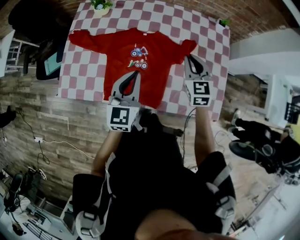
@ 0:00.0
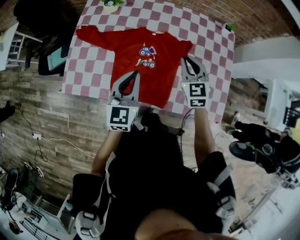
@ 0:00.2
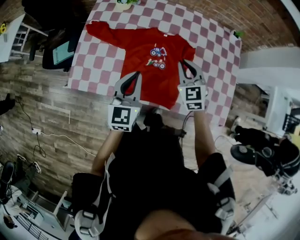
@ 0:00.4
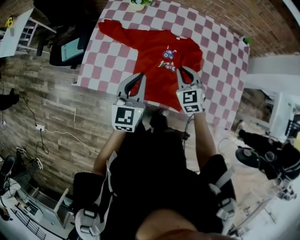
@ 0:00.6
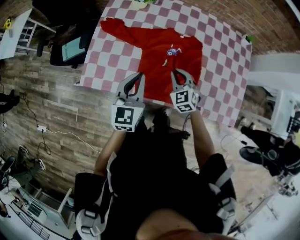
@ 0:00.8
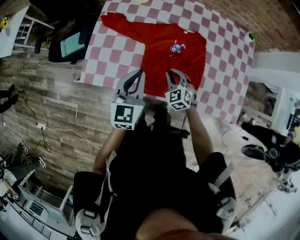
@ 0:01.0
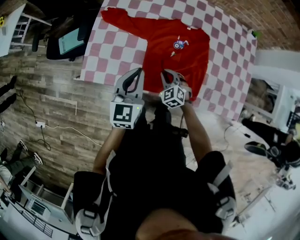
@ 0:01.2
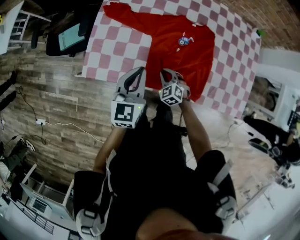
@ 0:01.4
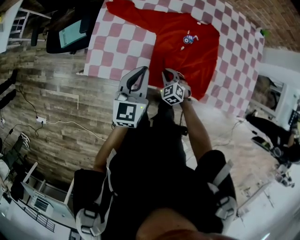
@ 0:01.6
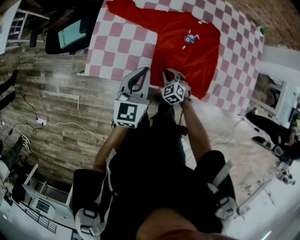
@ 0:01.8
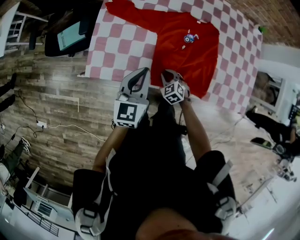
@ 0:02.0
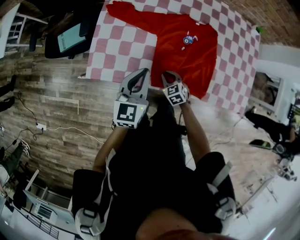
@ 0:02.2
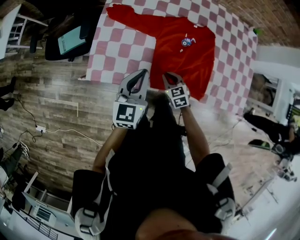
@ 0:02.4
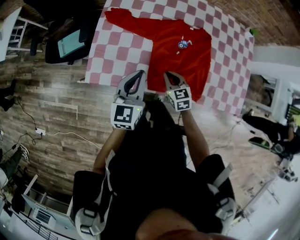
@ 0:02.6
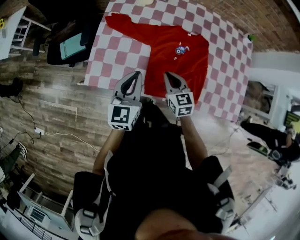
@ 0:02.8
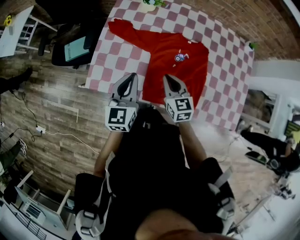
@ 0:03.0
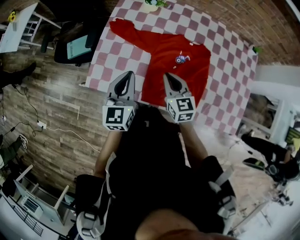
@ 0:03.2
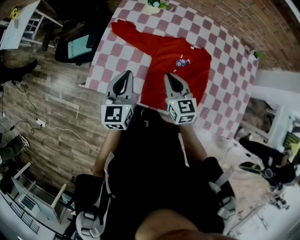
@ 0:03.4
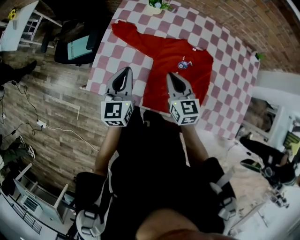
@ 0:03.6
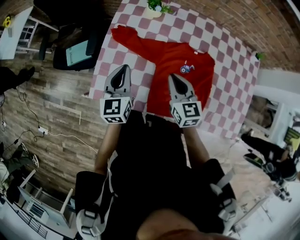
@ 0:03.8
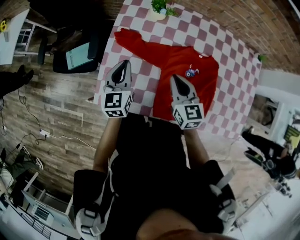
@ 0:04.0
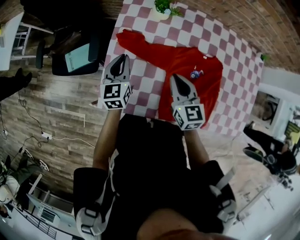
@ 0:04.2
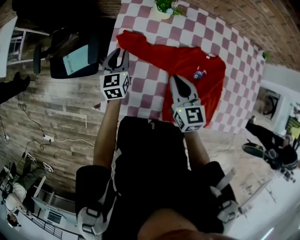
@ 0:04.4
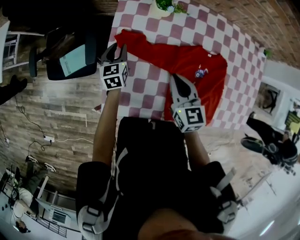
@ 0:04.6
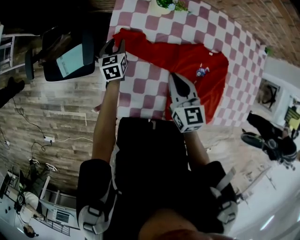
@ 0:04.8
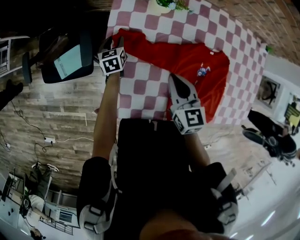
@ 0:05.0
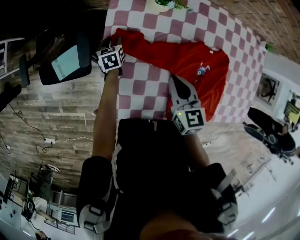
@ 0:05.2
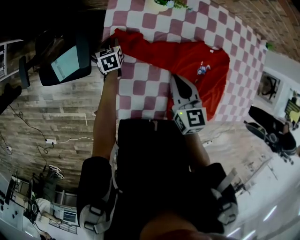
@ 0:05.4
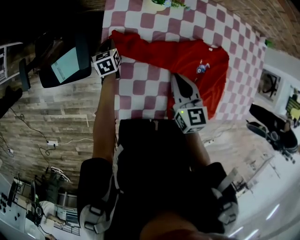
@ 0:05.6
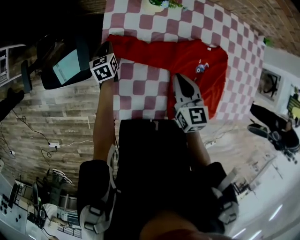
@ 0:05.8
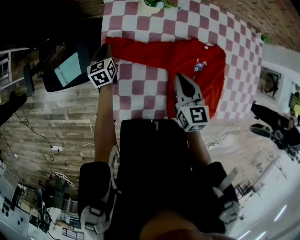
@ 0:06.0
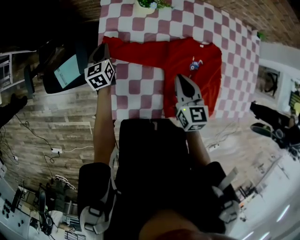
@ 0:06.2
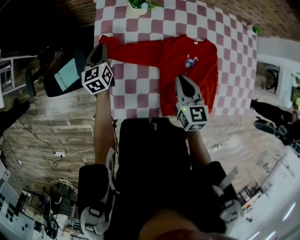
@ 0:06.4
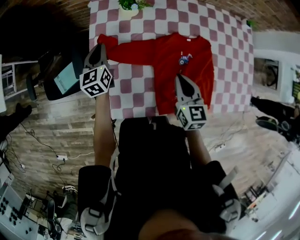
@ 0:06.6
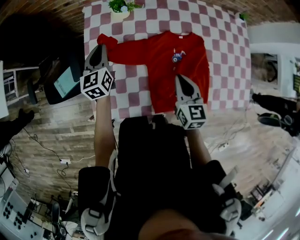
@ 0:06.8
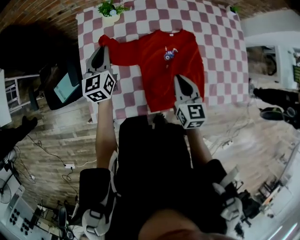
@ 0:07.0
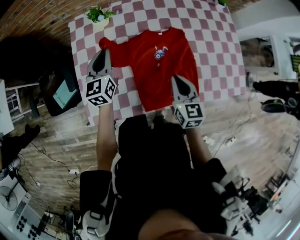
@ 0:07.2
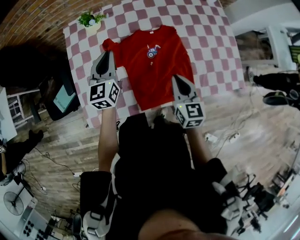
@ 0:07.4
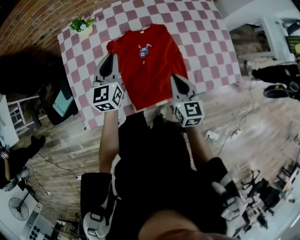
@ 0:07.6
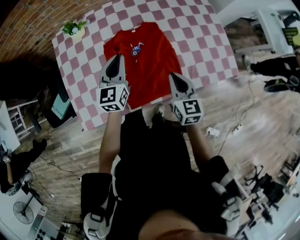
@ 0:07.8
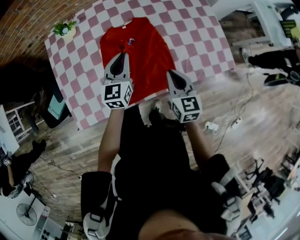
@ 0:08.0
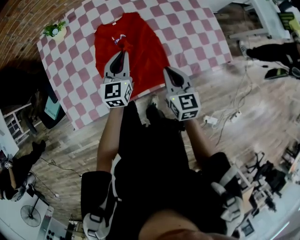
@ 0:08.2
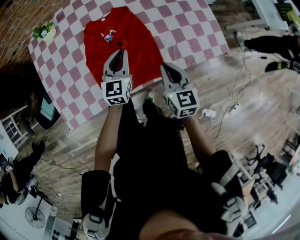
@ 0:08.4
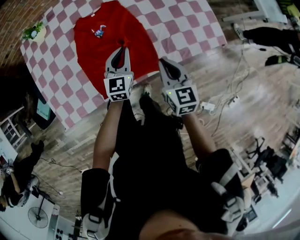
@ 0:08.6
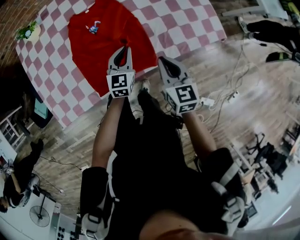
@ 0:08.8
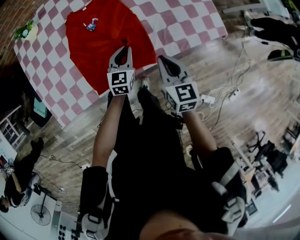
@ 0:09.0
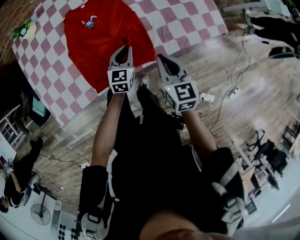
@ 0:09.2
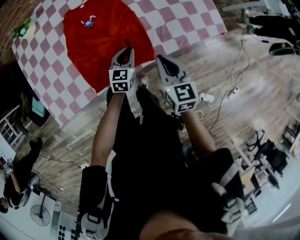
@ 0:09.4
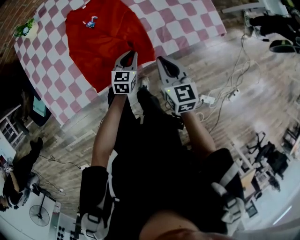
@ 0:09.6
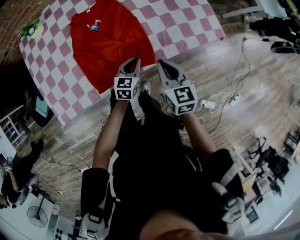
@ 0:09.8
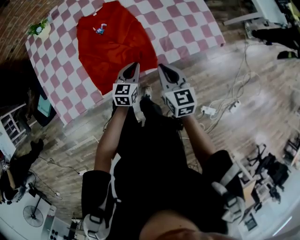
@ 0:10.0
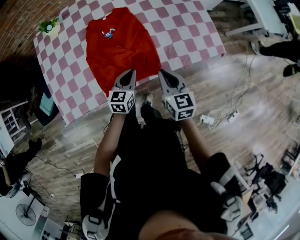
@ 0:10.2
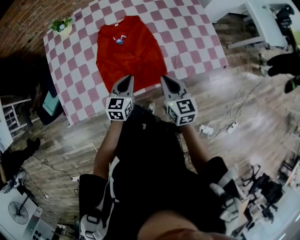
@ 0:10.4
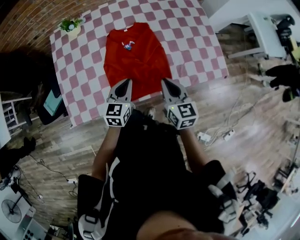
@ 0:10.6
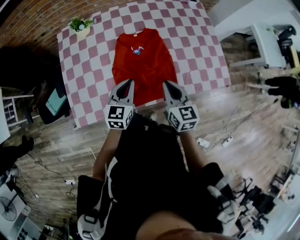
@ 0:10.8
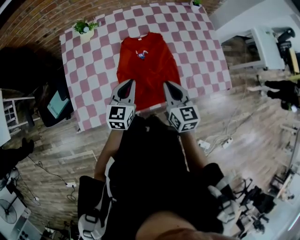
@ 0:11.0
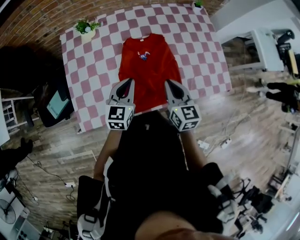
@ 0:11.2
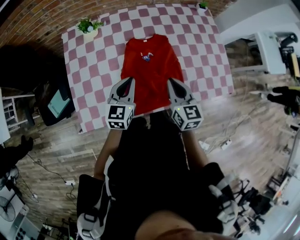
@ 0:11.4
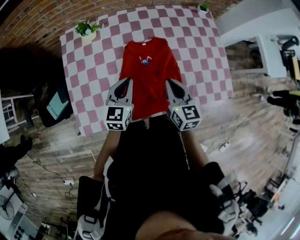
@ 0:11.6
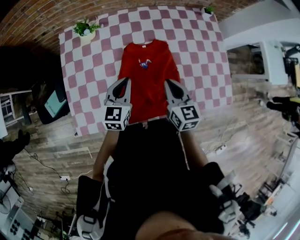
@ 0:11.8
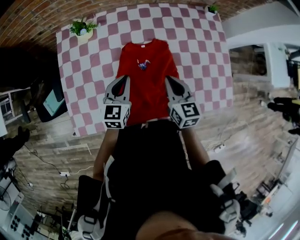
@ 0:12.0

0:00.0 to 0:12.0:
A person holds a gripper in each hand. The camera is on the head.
0:00.0 to 0:01.6: The left gripper shifts about 25 cm to the left. The right gripper is displaced to the left and downward by about 50 cm, and changes its angle by roughly 40 degrees.
0:01.6 to 0:03.0: The right gripper is displaced upward by some 20 cm, and rotates approximately 40 degrees; the left gripper shifts by roughly 5 cm.
0:03.0 to 0:04.4: The left gripper moves forward, to the left and downward, roughly 35 cm; the right gripper shifts some 20 cm forward and to the left.
0:04.4 to 0:06.0: The left gripper heads downward and forward, covering approximately 15 cm.
0:06.0 to 0:07.6: The left gripper is displaced to the right and upward by about 40 cm, and changes its angle by roughly 40 degrees. Meanwhile the right gripper heads to the right and backward, covering roughly 35 cm, and swivels some 20 degrees.
0:07.6 to 0:09.0: The right gripper shifts about 20 cm to the right, downward and backward, while the left gripper travels to the right and downward by roughly 35 cm, and turns by about 20 degrees.
0:09.0 to 0:10.4: The right gripper moves upward and to the left, roughly 10 cm. Meanwhile the left gripper goes approximately 15 cm upward, backward and to the left.
0:10.4 to 0:12.0: The left gripper goes roughly 25 cm forward, to the left and upward. The right gripper goes some 25 cm forward and to the left.

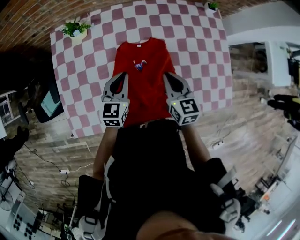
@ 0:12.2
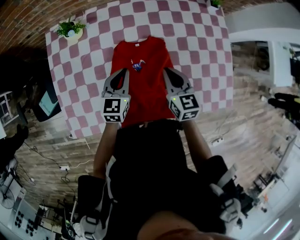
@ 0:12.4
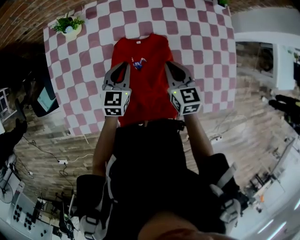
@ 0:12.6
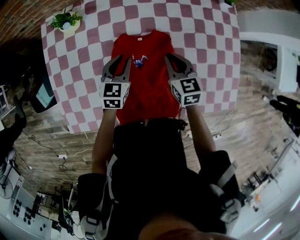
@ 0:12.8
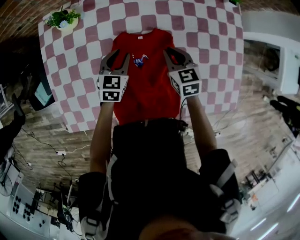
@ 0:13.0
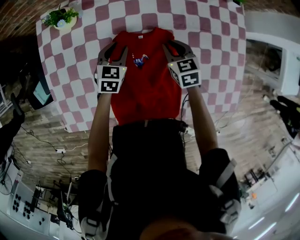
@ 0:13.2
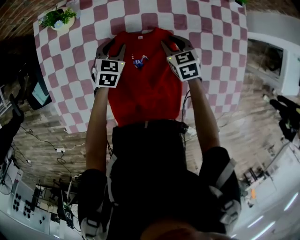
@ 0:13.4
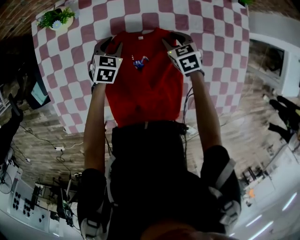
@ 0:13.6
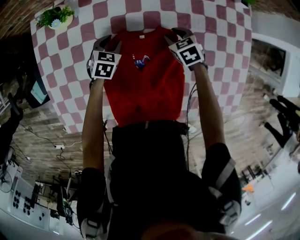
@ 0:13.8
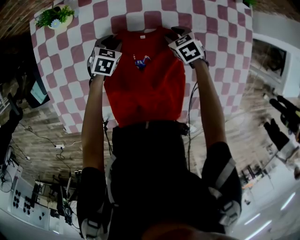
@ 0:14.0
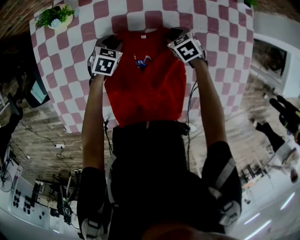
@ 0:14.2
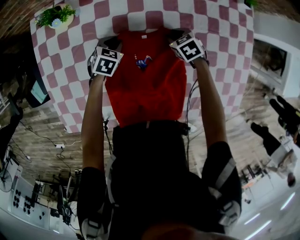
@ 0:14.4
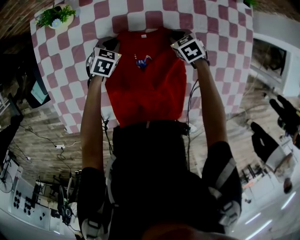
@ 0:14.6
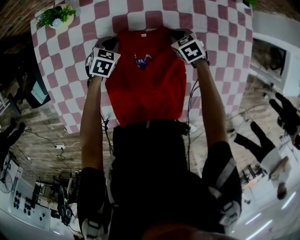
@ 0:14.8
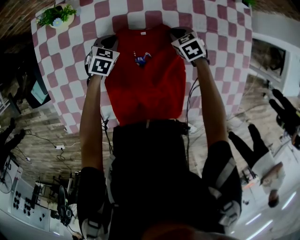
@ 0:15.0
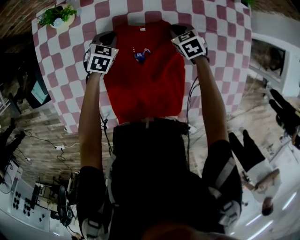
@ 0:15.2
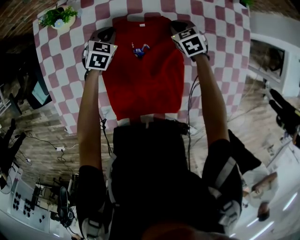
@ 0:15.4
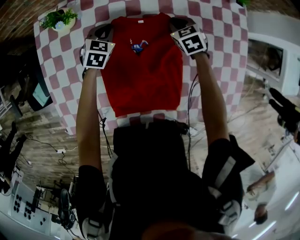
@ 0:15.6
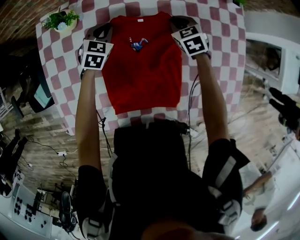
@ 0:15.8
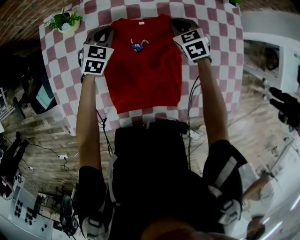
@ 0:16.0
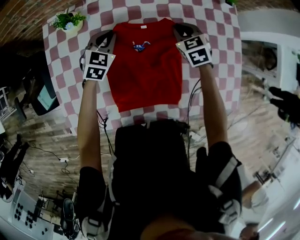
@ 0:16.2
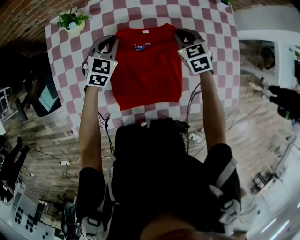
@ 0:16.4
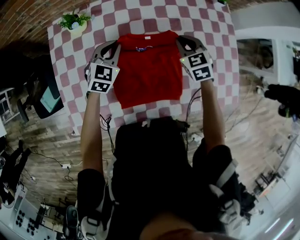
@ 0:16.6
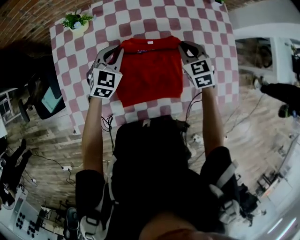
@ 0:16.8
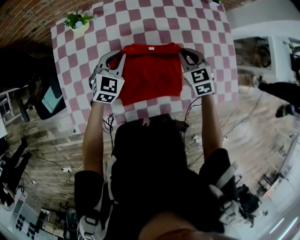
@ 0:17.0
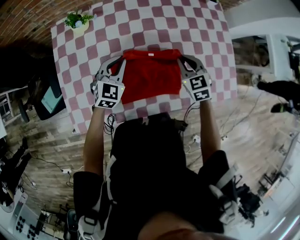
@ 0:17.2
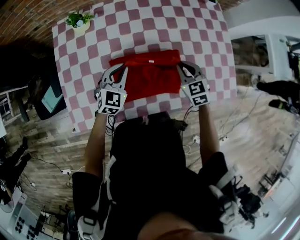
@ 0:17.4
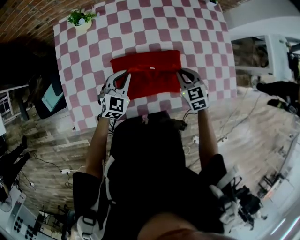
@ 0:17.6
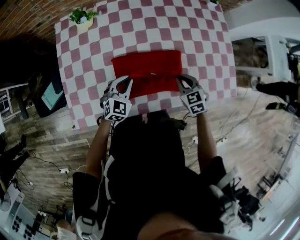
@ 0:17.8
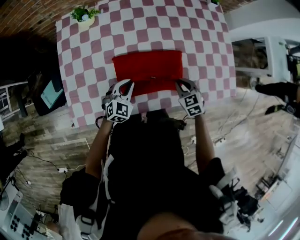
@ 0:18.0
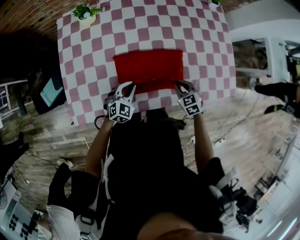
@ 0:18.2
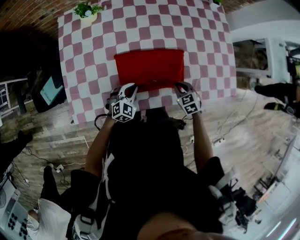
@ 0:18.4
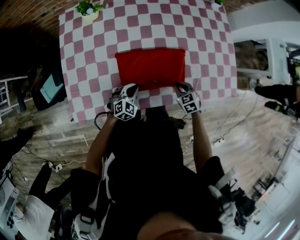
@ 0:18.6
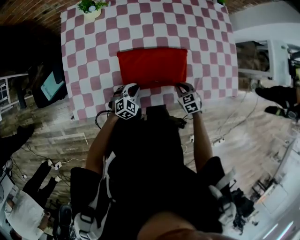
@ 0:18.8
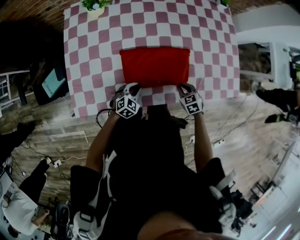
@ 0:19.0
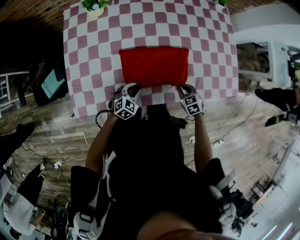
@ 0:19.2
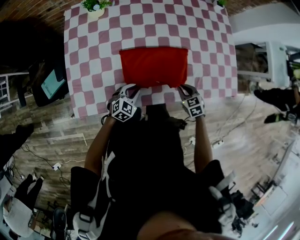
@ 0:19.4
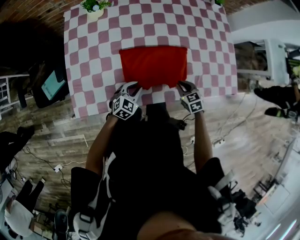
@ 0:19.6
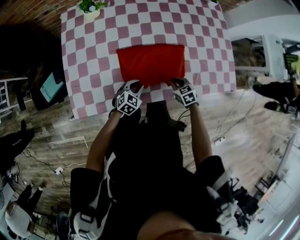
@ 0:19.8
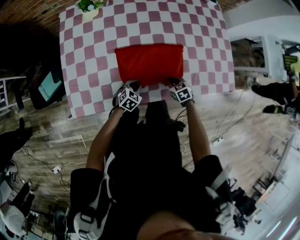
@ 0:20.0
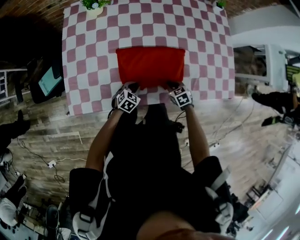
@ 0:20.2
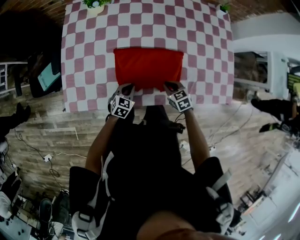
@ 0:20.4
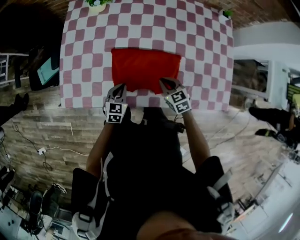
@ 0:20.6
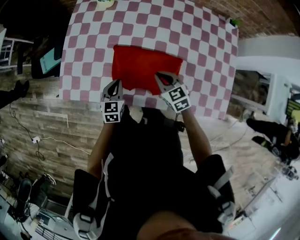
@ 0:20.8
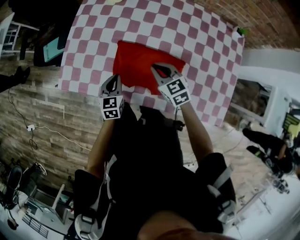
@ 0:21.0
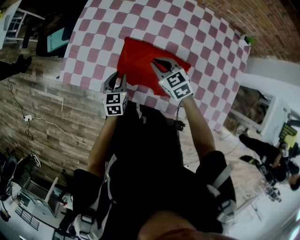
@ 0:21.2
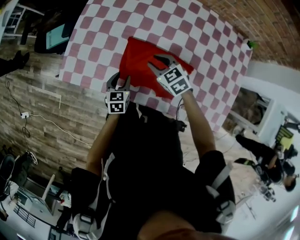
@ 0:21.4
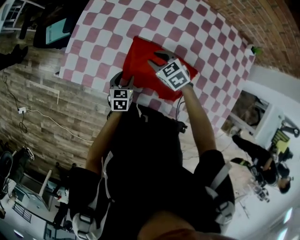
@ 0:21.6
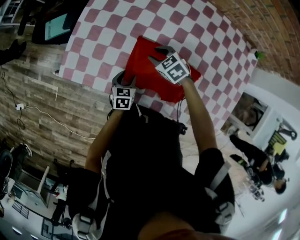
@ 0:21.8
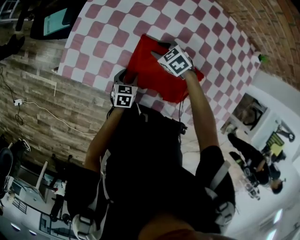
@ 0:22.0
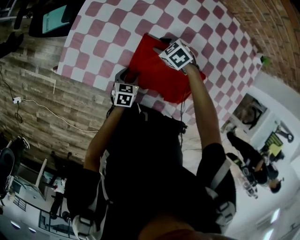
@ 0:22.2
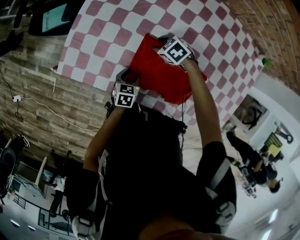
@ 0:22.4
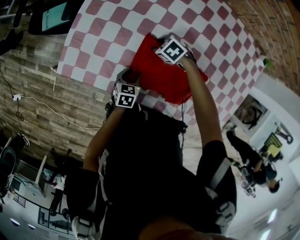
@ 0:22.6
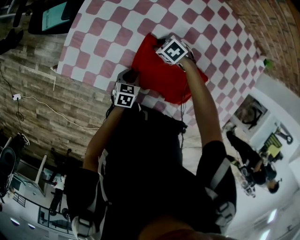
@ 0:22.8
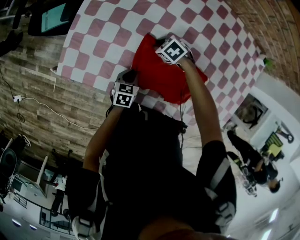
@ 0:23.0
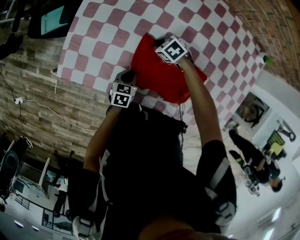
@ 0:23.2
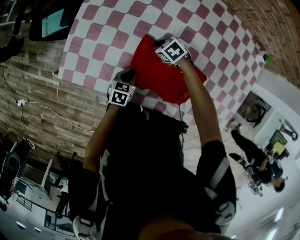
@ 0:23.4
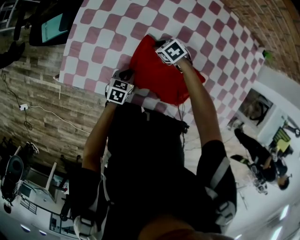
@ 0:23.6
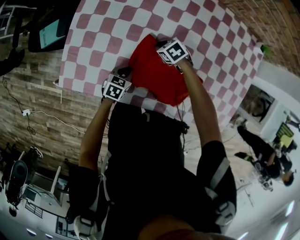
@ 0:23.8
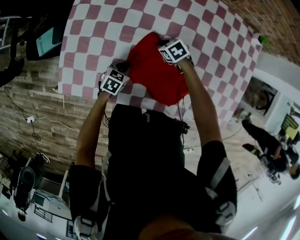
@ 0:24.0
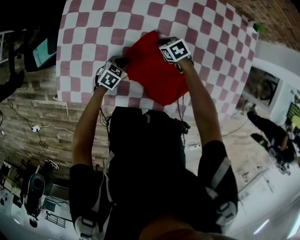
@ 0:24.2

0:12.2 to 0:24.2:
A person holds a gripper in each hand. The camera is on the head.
0:12.2 to 0:13.8: The grippers both shift downward and forward by roughly 30 cm. The right gripper tips its fingers downward by approximately 40 degrees, and opens its fingers. Meanwhile the left gripper points its fingers approximately 30 degrees further downward, and opens.
0:13.8 to 0:15.2: The right gripper closes its fingers. Meanwhile the left gripper closes up.
0:15.2 to 0:16.6: The grippers both shift upward and backward by approximately 20 cm. The right gripper changes its angle by about 20 degrees. Meanwhile the left gripper changes its angle by some 20 degrees.
0:16.6 to 0:18.2: Both grippers travel together backward, some 25 cm.
0:18.2 to 0:19.8: Both grippers move downward, approximately 5 cm.
0:19.8 to 0:21.2: The left gripper heads upward, covering some 5 cm, and rotates some 60 degrees. The right gripper changes place by approximately 20 cm, and swivels approximately 40 degrees.
0:21.2 to 0:22.6: The left gripper moves downward, about 15 cm, and opens, while the right gripper is displaced downward by some 20 cm, points its fingers roughly 30 degrees further downward, and opens up.
0:22.6 to 0:24.2: The right gripper changes place by about 15 cm, turns by about 30 degrees, and closes its fingers. The left gripper moves approximately 10 cm, rotates about 40 degrees, and closes its fingers.
